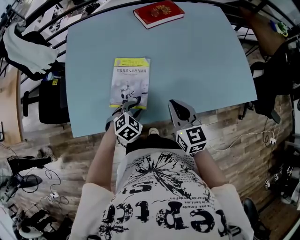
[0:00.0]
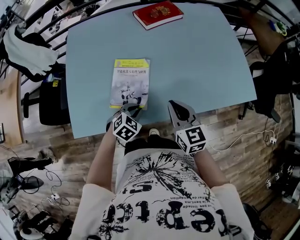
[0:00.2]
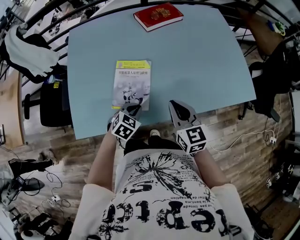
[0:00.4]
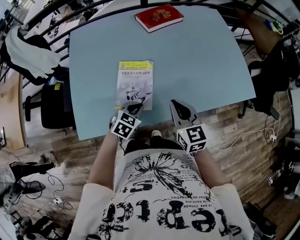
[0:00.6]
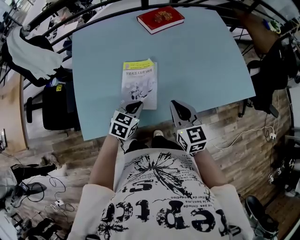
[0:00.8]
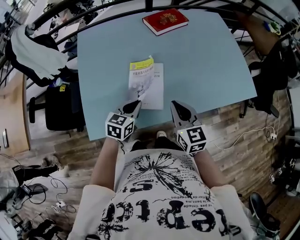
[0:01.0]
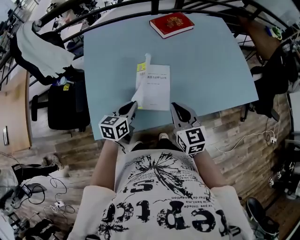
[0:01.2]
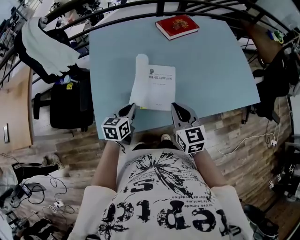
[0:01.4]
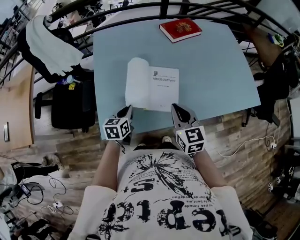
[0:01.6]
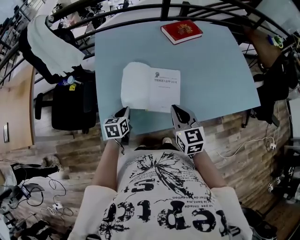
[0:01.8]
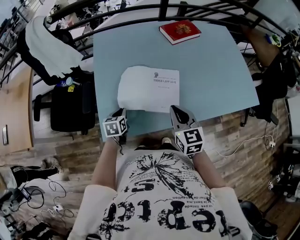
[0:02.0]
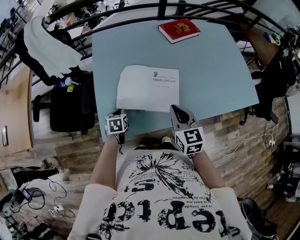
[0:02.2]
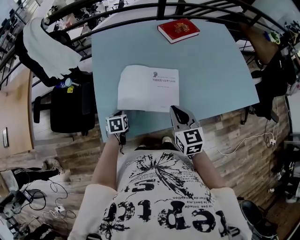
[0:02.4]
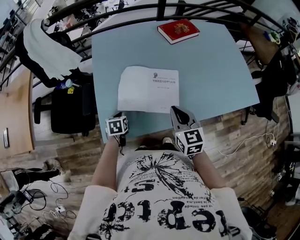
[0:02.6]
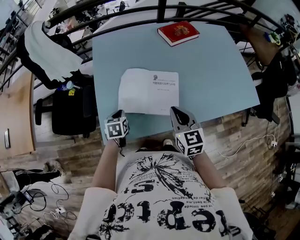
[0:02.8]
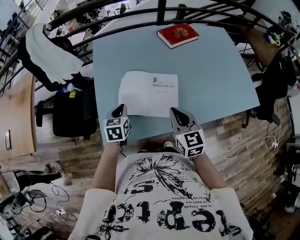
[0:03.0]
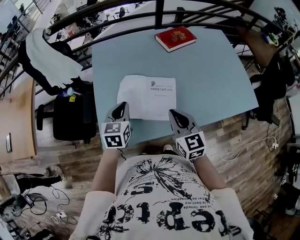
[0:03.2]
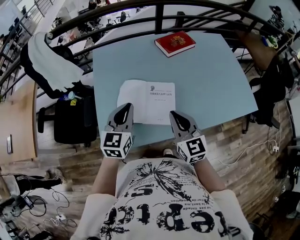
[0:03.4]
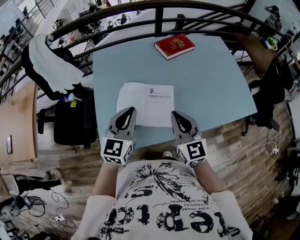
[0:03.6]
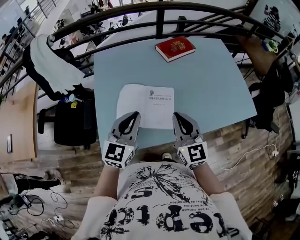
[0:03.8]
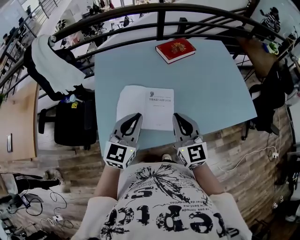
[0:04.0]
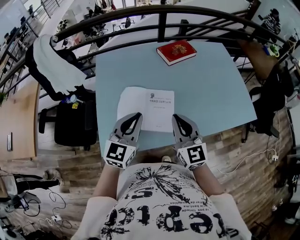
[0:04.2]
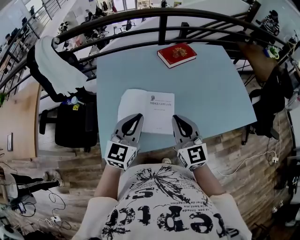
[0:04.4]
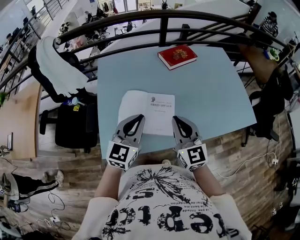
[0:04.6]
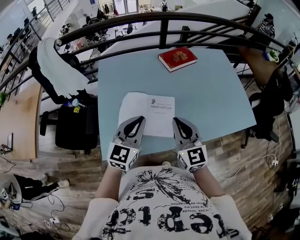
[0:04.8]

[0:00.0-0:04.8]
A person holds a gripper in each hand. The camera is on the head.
0:00.0 to 0:01.6: Both grippers travel together to the left, approximately 20 cm. The left gripper twists some 50 degrees counterclockwise, seen from behind, and closes its fingers.
0:01.6 to 0:03.2: The left gripper shifts about 10 cm upward.
0:03.2 to 0:04.8: The right gripper travels upward by some 5 cm, while the left gripper travels upward and to the right by about 15 cm, and swivels about 30 degrees.

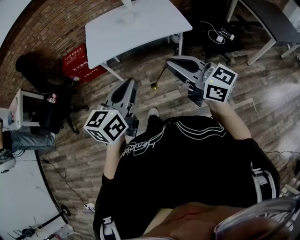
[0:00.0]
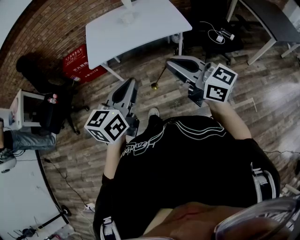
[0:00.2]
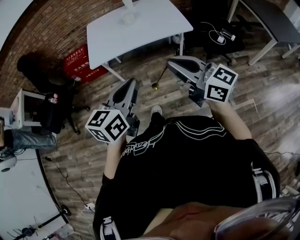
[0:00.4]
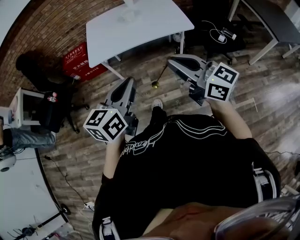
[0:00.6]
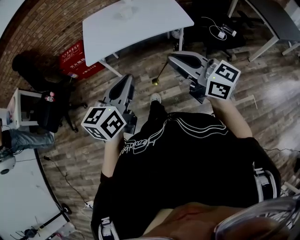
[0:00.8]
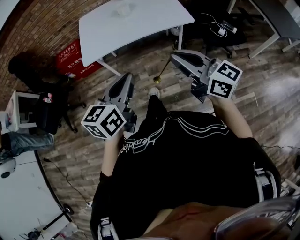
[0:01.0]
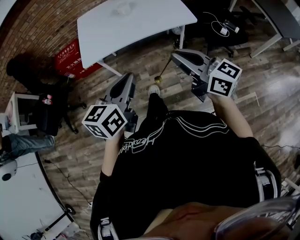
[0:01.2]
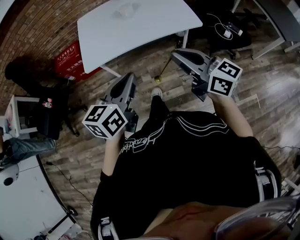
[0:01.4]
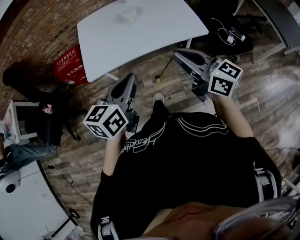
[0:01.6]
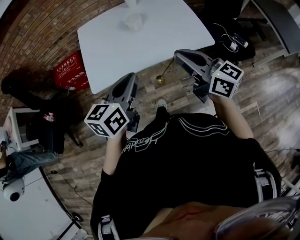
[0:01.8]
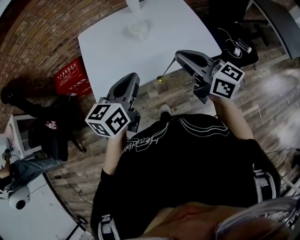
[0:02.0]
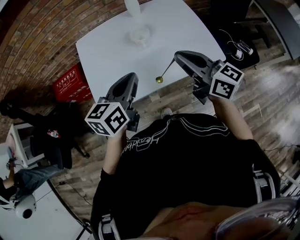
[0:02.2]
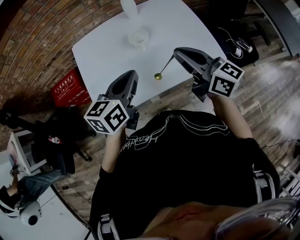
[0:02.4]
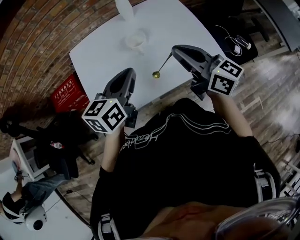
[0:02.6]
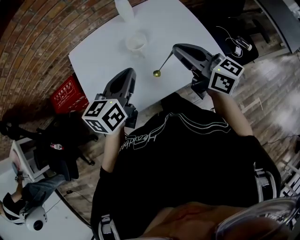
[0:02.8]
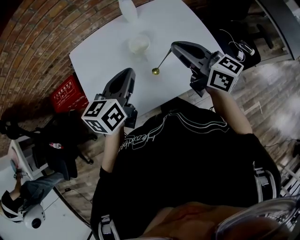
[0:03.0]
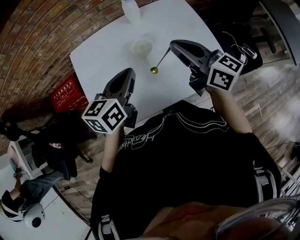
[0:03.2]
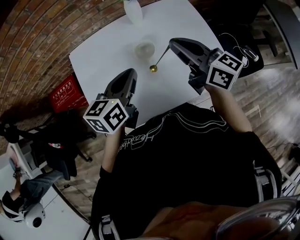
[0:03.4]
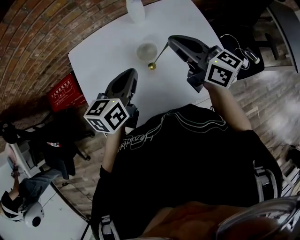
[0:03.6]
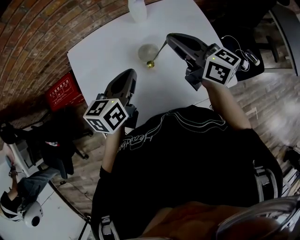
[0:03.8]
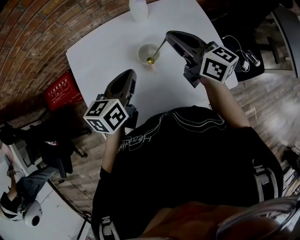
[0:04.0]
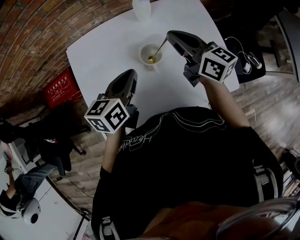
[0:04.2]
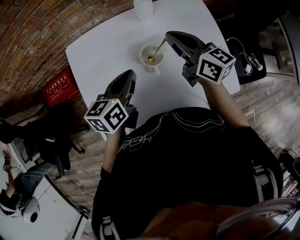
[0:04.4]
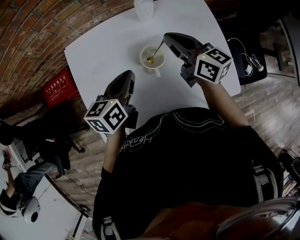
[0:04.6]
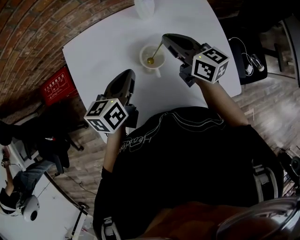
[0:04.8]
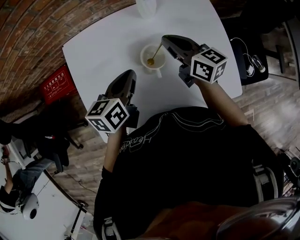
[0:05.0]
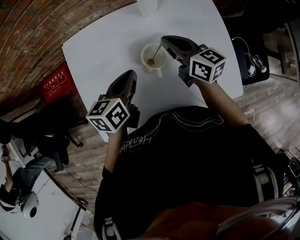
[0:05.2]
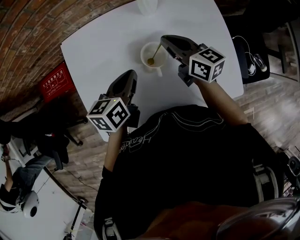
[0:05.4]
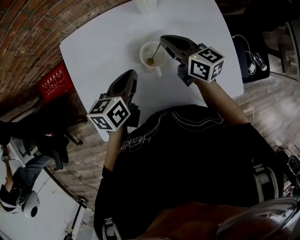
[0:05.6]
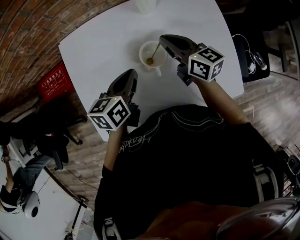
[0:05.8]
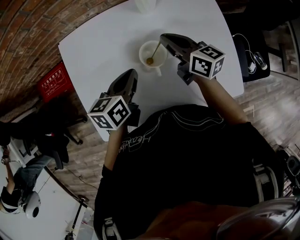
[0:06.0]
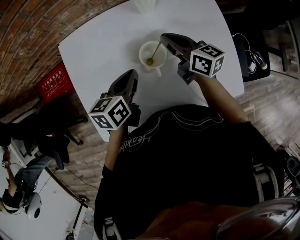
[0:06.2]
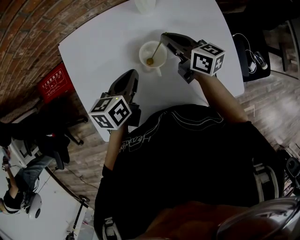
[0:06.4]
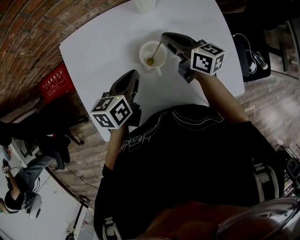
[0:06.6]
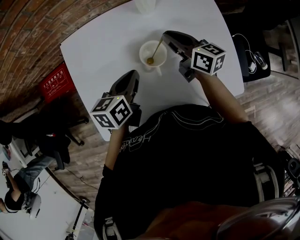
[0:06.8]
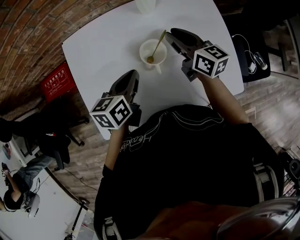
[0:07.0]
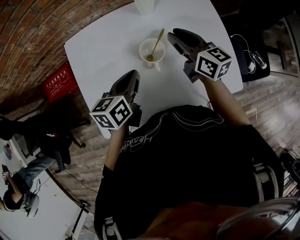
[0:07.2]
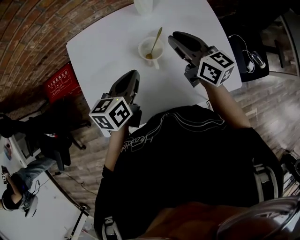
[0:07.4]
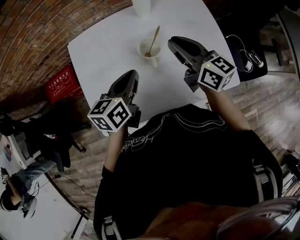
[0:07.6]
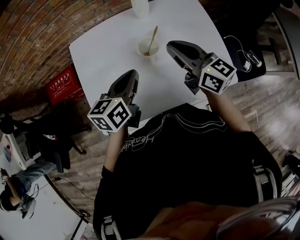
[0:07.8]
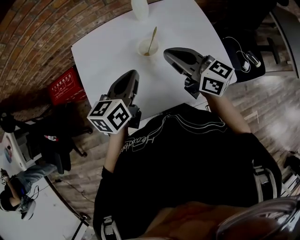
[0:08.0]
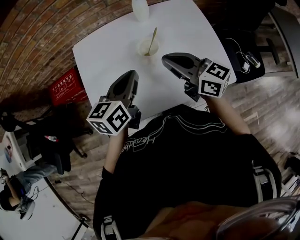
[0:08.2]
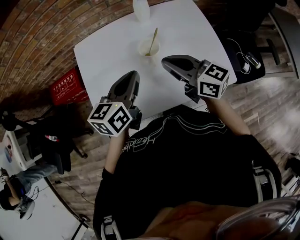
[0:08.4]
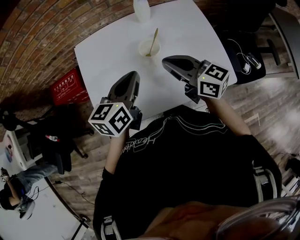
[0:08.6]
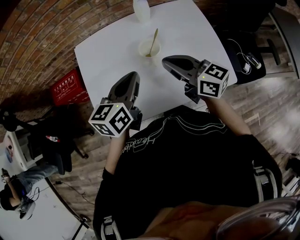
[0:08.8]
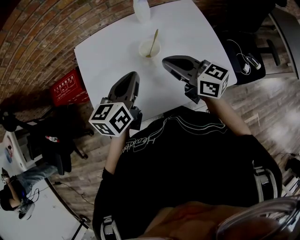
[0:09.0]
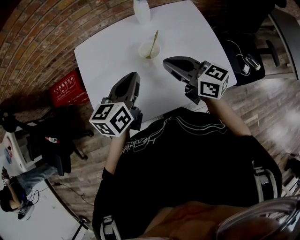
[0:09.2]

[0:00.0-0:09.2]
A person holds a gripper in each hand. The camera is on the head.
0:00.0 to 0:01.6: The two grippers go approximately 20 cm forward.
0:01.6 to 0:03.0: Both grippers travel together forward, some 35 cm.
0:03.0 to 0:04.6: Both grippers move forward and downward, about 20 cm.
0:04.6 to 0:06.2: The right gripper goes about 10 cm downward. The left gripper moves downward, some 5 cm.
0:06.2 to 0:07.6: The right gripper goes roughly 15 cm upward and backward; the left gripper moves upward and backward, approximately 10 cm.
0:07.6 to 0:09.2: The left gripper is displaced upward by roughly 5 cm; the right gripper goes roughly 10 cm backward.

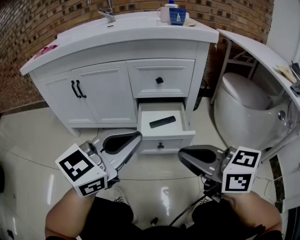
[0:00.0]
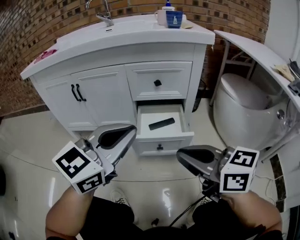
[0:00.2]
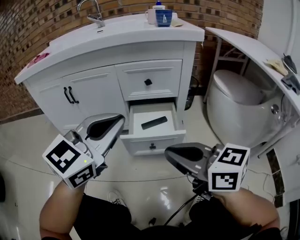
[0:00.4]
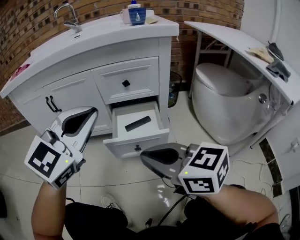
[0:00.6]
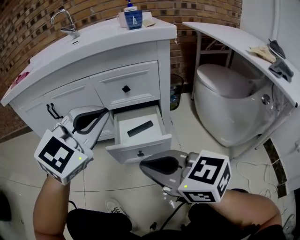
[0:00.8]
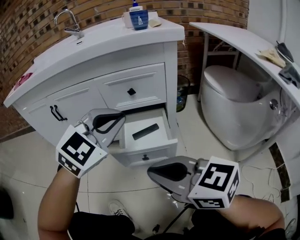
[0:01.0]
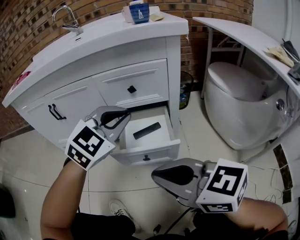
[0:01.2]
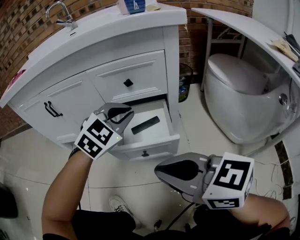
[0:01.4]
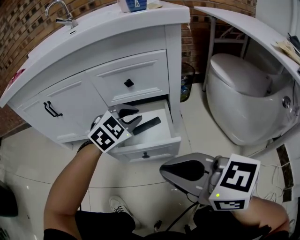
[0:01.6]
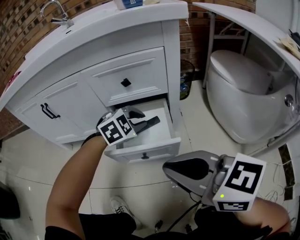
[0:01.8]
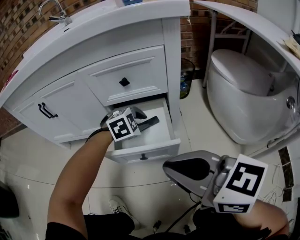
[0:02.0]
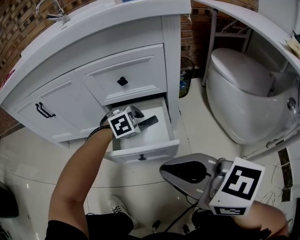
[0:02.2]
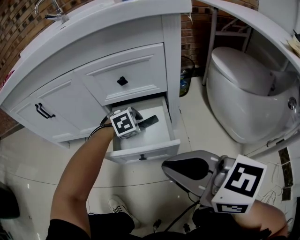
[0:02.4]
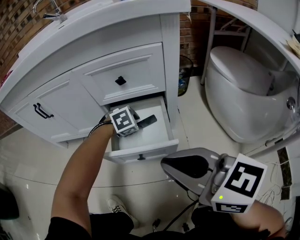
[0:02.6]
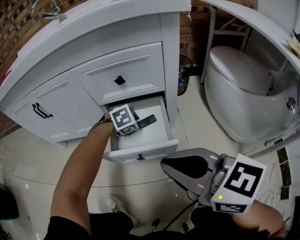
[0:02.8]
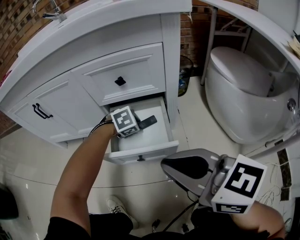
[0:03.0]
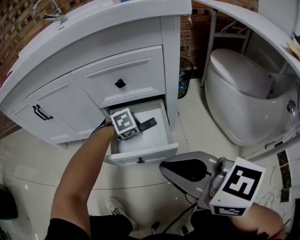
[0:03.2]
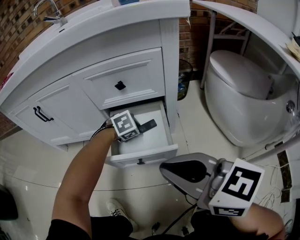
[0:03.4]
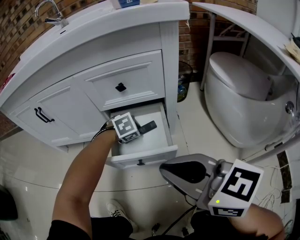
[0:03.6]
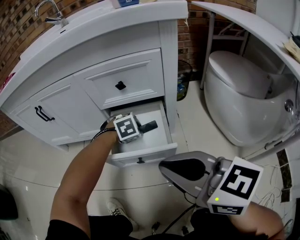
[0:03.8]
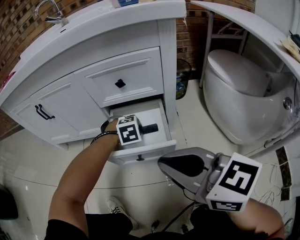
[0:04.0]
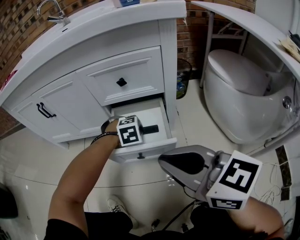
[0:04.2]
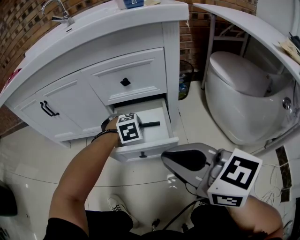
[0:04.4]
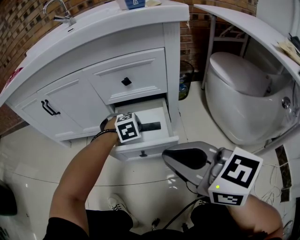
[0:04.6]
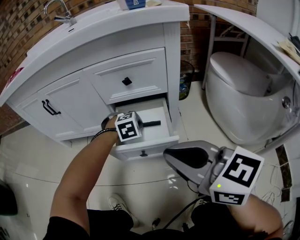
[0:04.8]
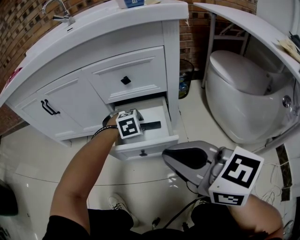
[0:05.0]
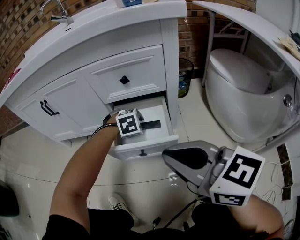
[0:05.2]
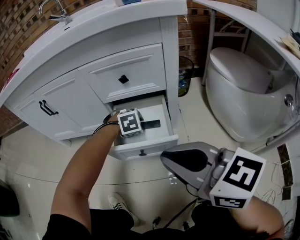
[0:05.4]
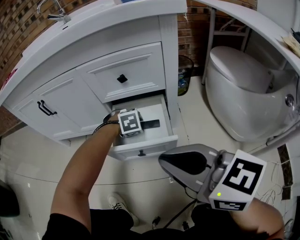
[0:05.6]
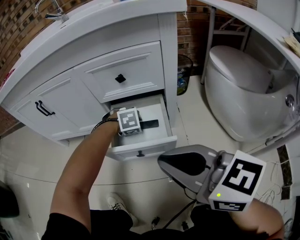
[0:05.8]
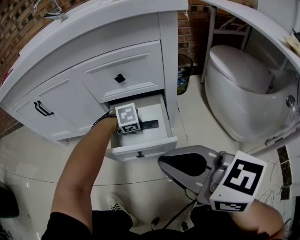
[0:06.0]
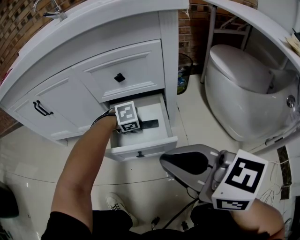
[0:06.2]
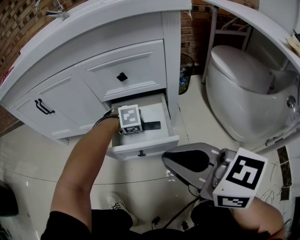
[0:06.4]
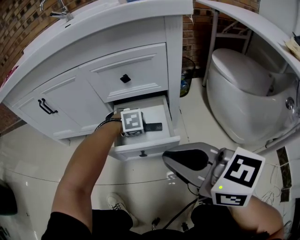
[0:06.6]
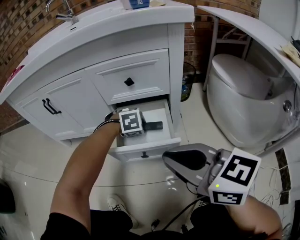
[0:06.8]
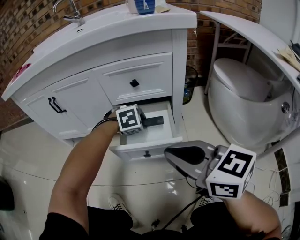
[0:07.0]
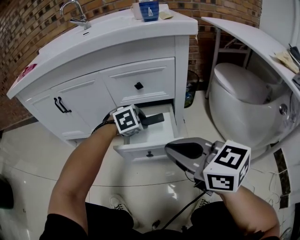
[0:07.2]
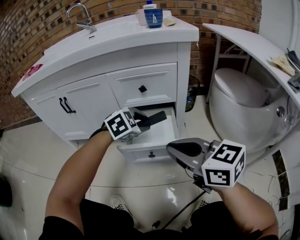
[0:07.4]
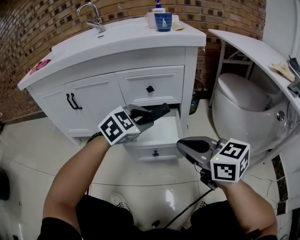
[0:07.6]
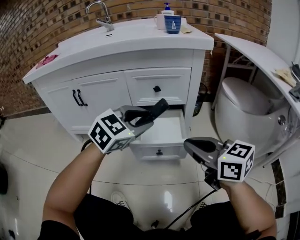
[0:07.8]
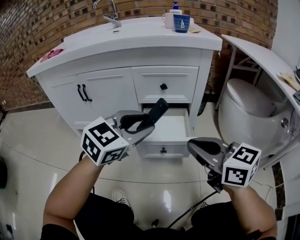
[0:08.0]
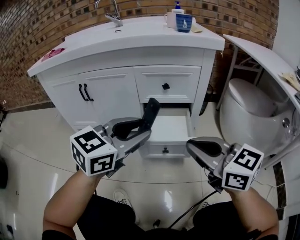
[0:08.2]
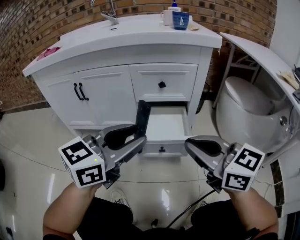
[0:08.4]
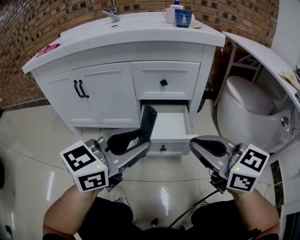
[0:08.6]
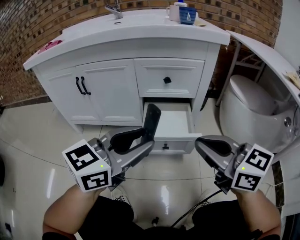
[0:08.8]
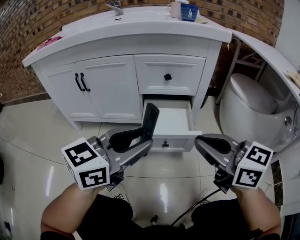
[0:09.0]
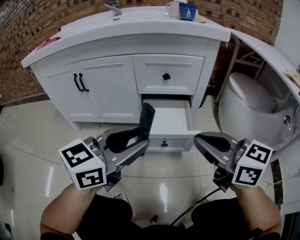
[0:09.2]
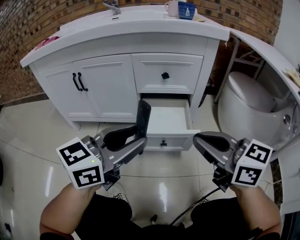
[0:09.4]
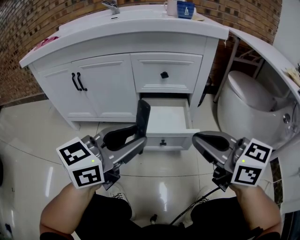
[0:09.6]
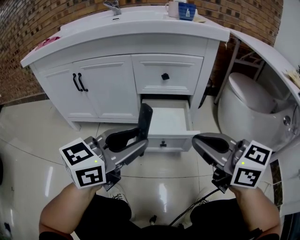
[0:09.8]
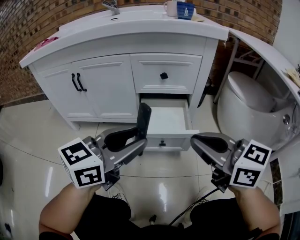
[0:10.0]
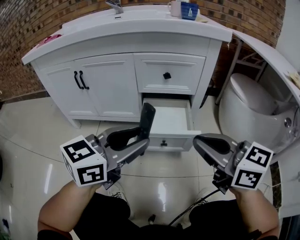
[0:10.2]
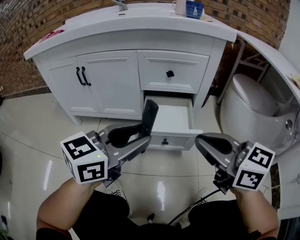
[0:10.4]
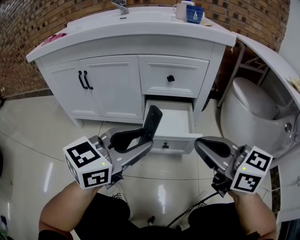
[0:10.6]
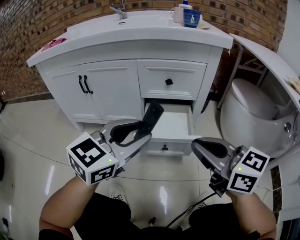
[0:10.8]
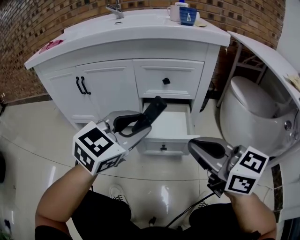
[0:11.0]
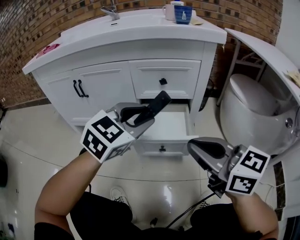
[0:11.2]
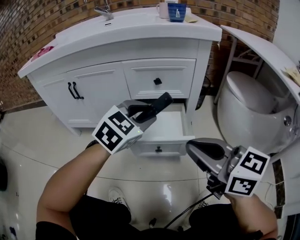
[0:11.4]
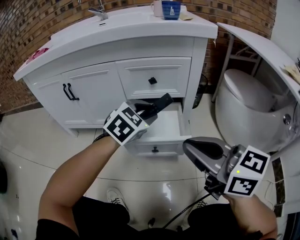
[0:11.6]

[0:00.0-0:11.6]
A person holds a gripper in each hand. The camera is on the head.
0:00.0 to 0:01.4: The left gripper shifts about 20 cm forward, to the right and downward, and changes its angle by about 40 degrees.
0:01.4 to 0:02.8: The left gripper goes approximately 25 cm downward, angles its fingers downward, by approximately 40 degrees, and opens; the right gripper moves forward, about 5 cm.
0:02.8 to 0:04.4: The left gripper closes up.
0:04.4 to 0:05.8: The left gripper opens up.
0:05.8 to 0:07.2: The left gripper heads upward, covering some 10 cm.
0:07.2 to 0:08.8: The left gripper goes about 30 cm backward and upward, and tilts its fingers approximately 50 degrees upward.
0:08.8 to 0:10.2: There are only small adjustments of the grippers.
0:10.2 to 0:11.6: The left gripper goes some 20 cm forward, to the right and downward, and rotates about 40 degrees.
